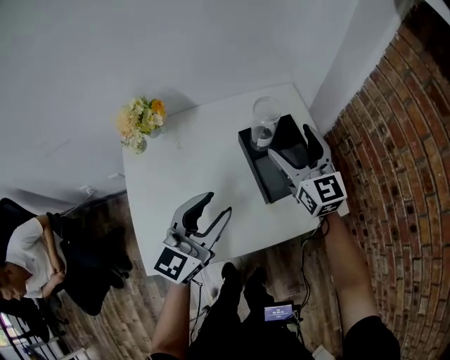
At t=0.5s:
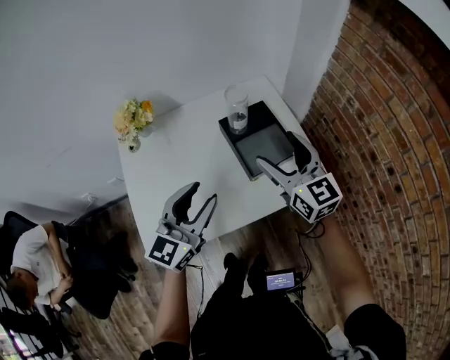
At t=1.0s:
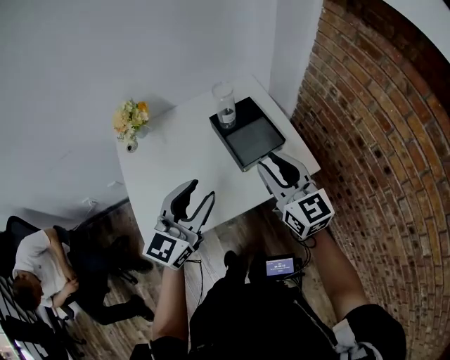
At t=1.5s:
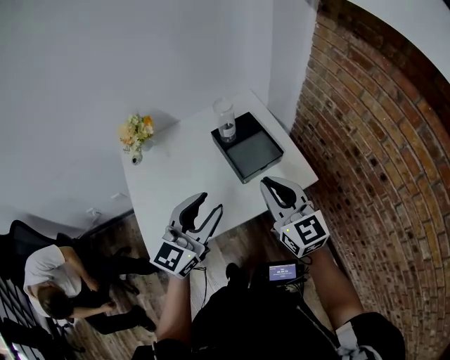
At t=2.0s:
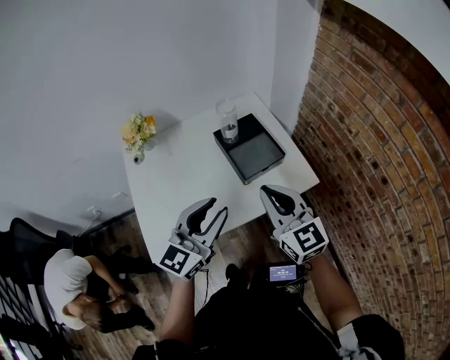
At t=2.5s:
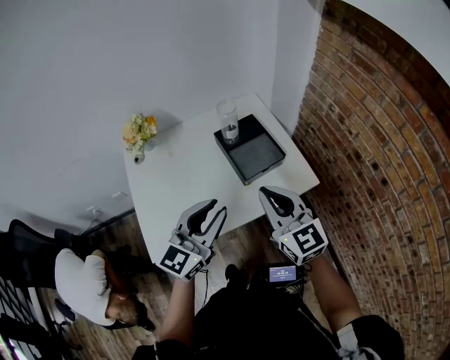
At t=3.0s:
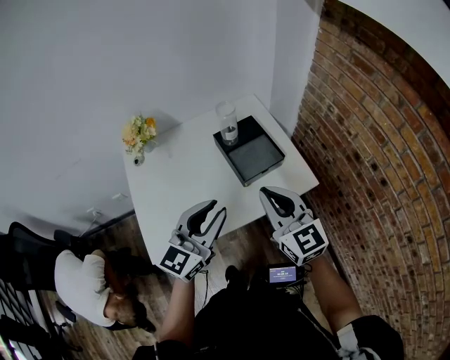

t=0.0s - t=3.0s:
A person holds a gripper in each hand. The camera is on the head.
t=0.0s - t=1.5s: The right gripper travels backward by approximately 25 cm, and closes its fingers; the left gripper heads backward, upward and to the right, covering approximately 15 cm.
t=1.5s - t=3.0s: There are only small adjustments of the grippers.

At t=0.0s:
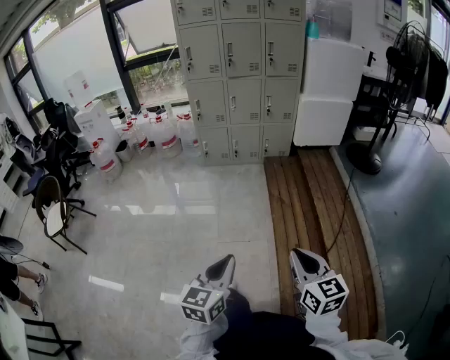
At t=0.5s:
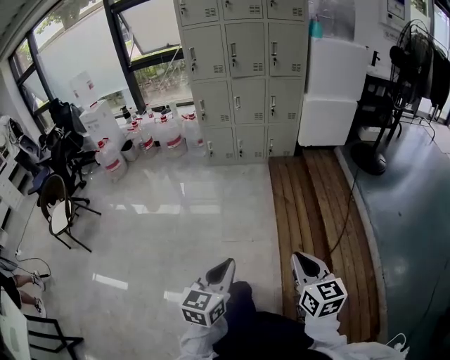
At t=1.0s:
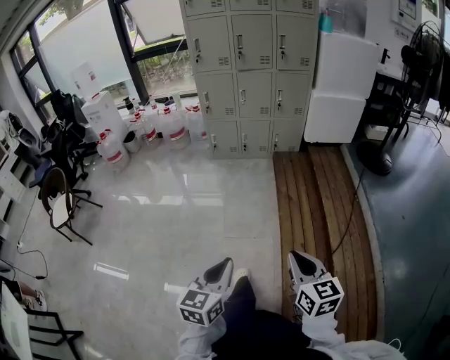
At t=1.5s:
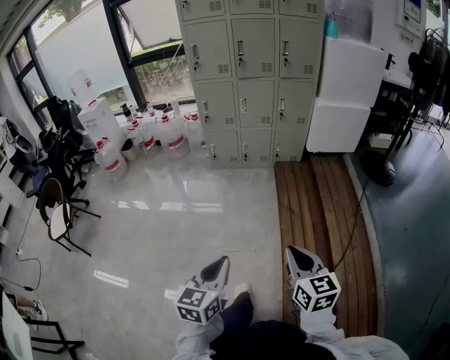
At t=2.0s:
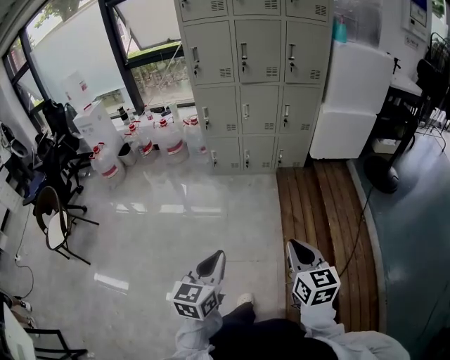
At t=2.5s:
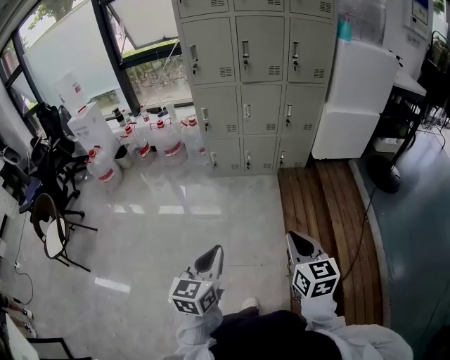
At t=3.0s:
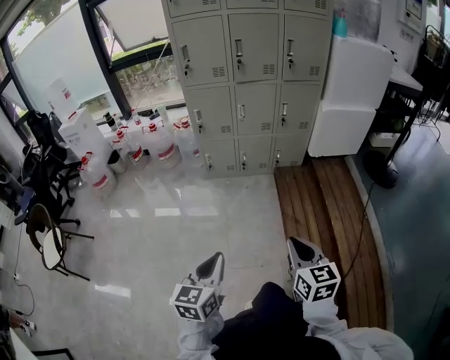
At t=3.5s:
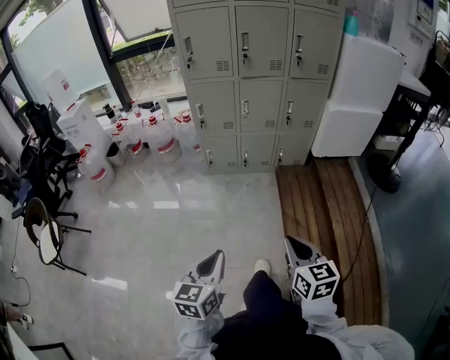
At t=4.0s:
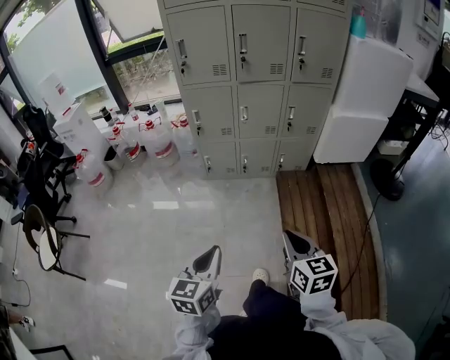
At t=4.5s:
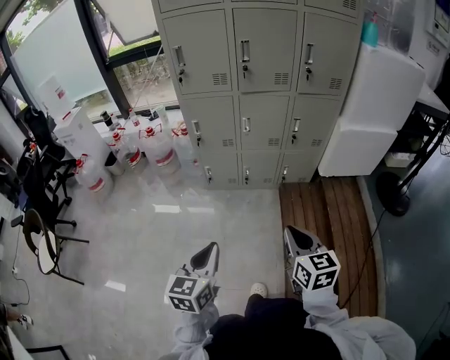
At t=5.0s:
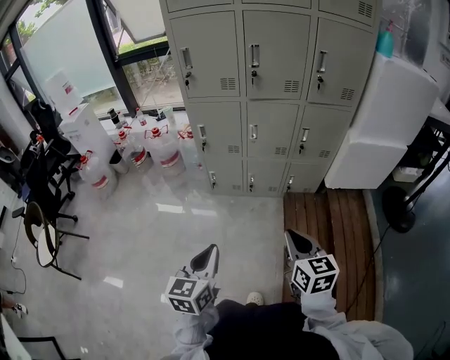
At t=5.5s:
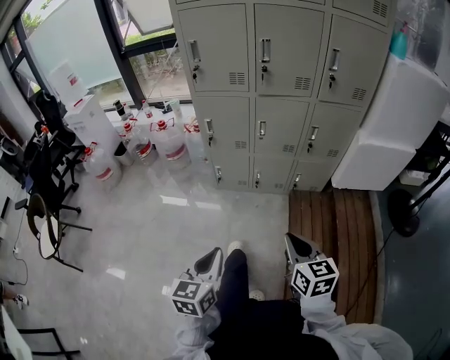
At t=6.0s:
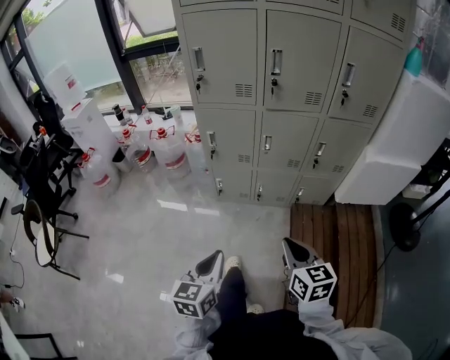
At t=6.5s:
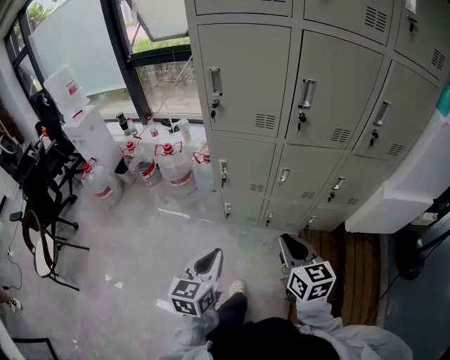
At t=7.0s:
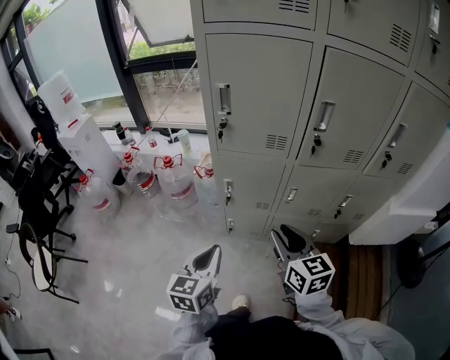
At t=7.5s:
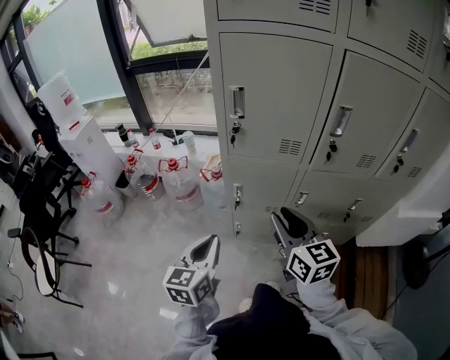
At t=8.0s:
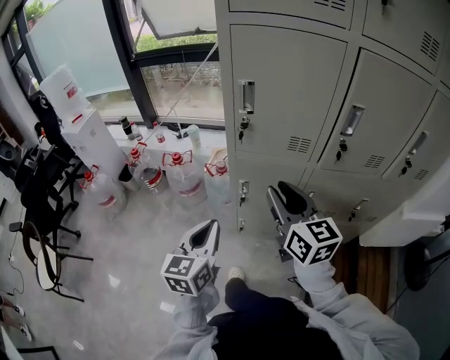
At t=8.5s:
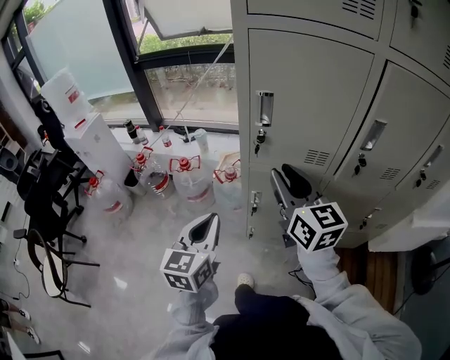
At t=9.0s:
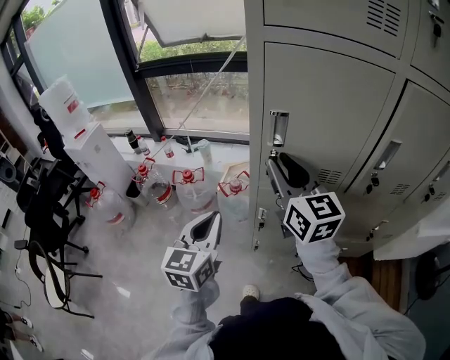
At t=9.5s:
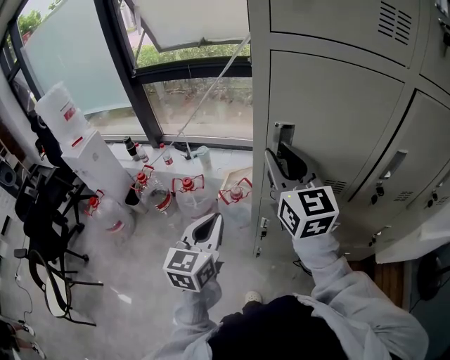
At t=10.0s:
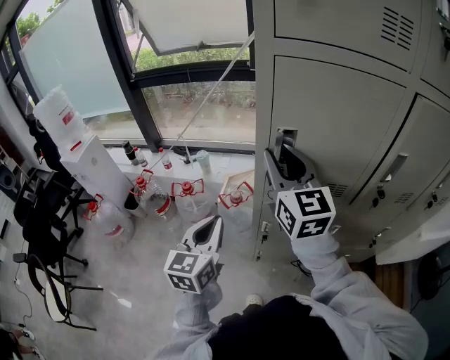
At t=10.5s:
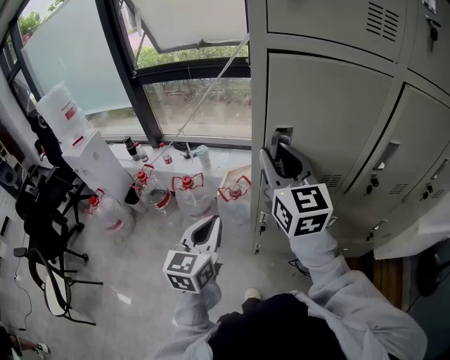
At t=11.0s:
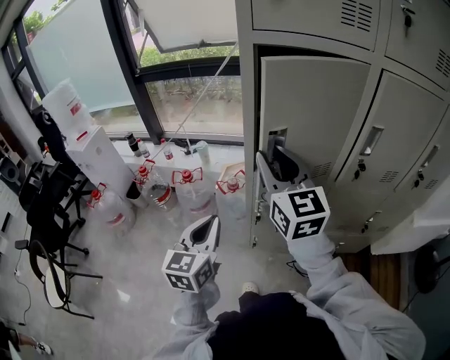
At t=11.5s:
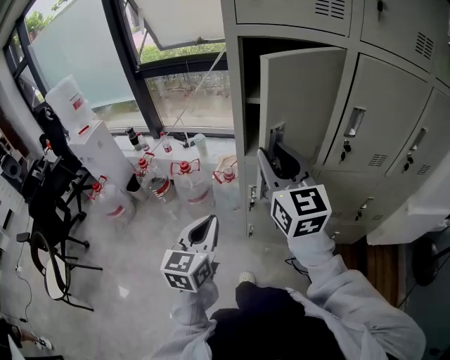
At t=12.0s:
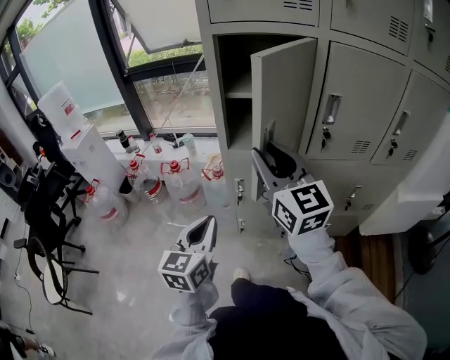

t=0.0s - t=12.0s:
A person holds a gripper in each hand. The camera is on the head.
t=0.0s - t=2.0s: The grippers both shift forward by roughly 25 cm.
t=2.0s - t=4.0s: The grippers both shift forward by about 20 cm.
t=4.0s - t=6.0s: Both grippers move forward, approximately 20 cm.
t=6.0s - t=8.0s: The right gripper shifts roughly 50 cm forward, to the left and upward, turns by some 20 degrees, and opens its fingers; the left gripper is displaced forward and to the left by about 40 cm.
t=8.0s - t=10.0s: The right gripper is displaced forward, upward and to the left by some 25 cm; the left gripper travels forward and to the left by roughly 20 cm.
t=10.0s - t=12.0s: The right gripper goes some 20 cm backward. The left gripper travels backward and to the right by some 20 cm.

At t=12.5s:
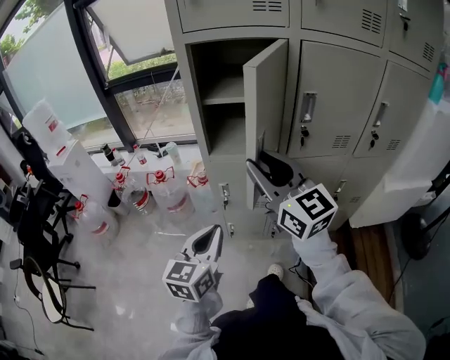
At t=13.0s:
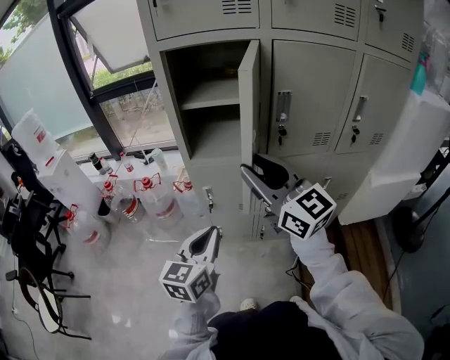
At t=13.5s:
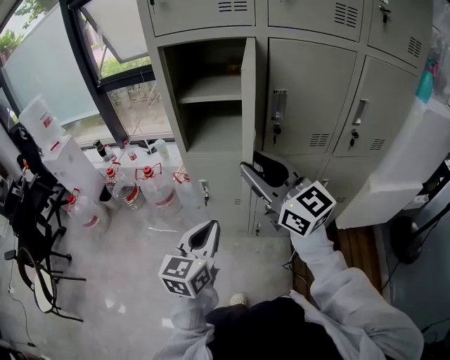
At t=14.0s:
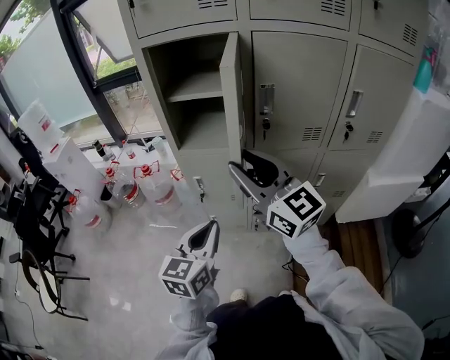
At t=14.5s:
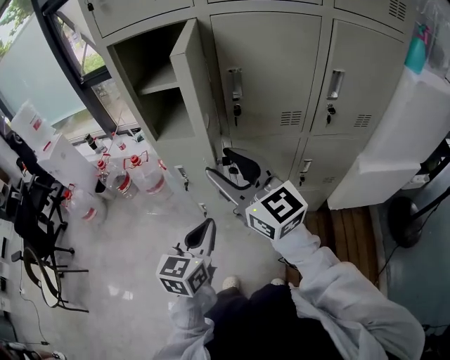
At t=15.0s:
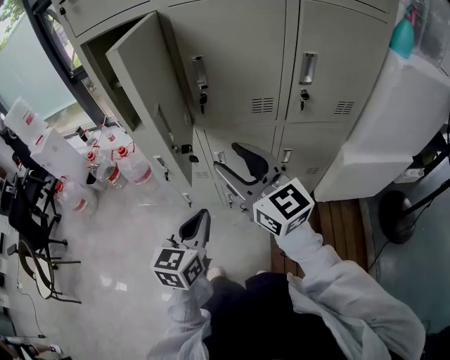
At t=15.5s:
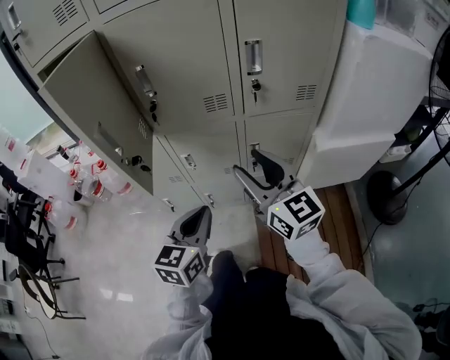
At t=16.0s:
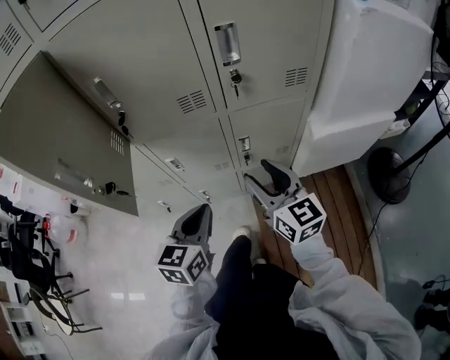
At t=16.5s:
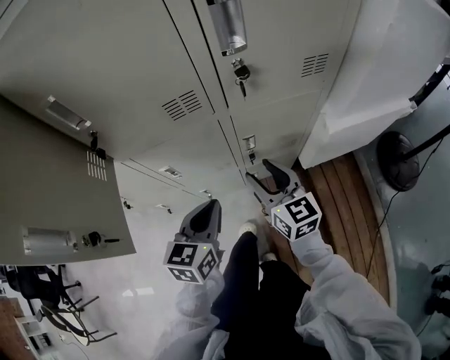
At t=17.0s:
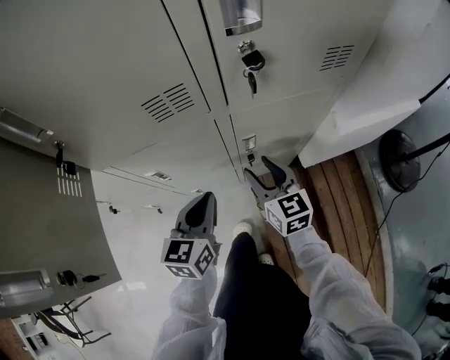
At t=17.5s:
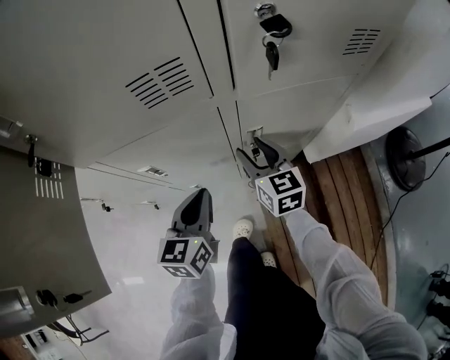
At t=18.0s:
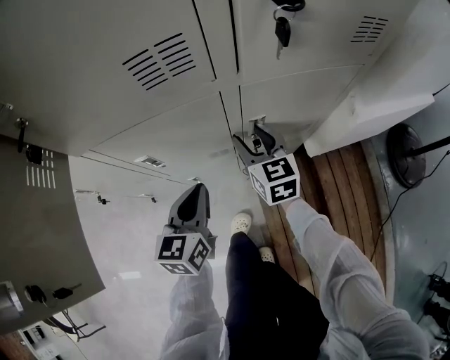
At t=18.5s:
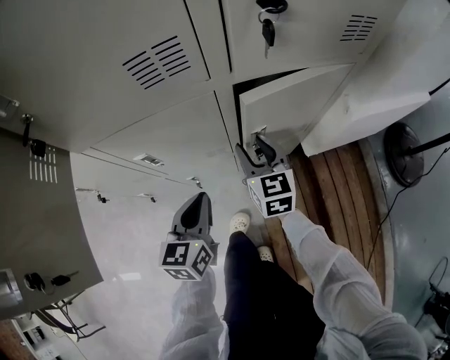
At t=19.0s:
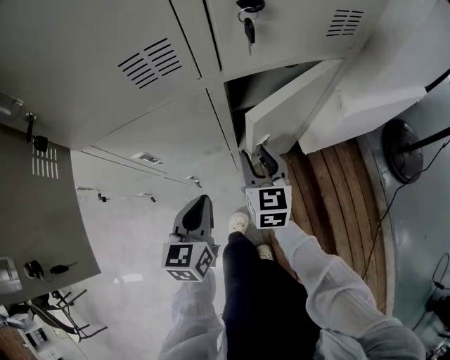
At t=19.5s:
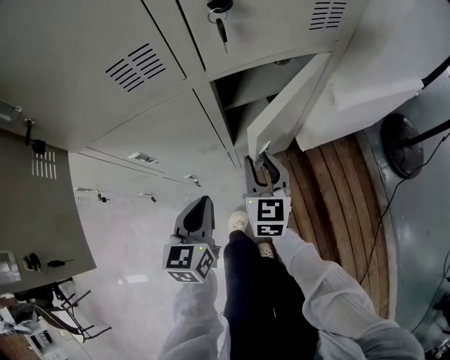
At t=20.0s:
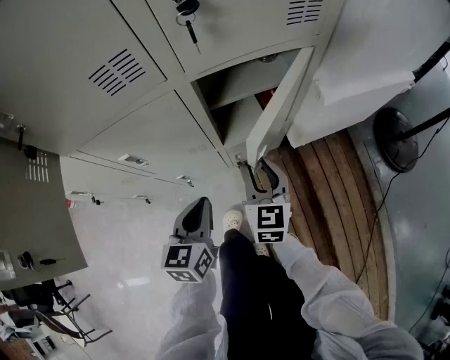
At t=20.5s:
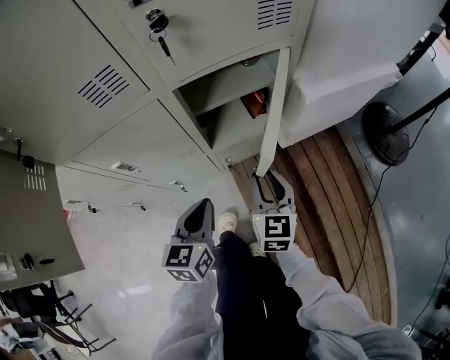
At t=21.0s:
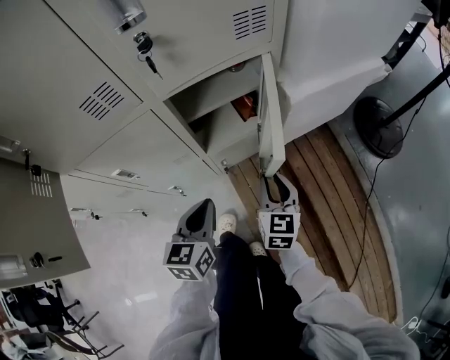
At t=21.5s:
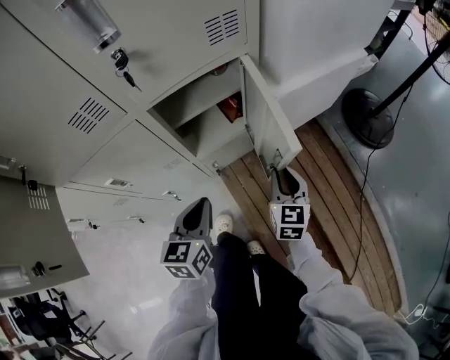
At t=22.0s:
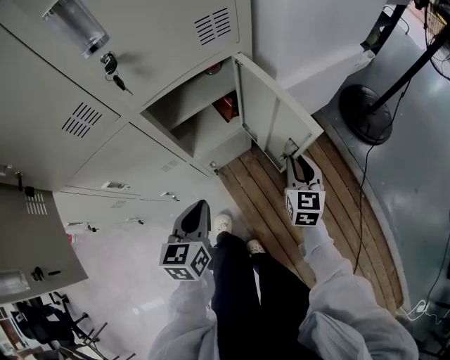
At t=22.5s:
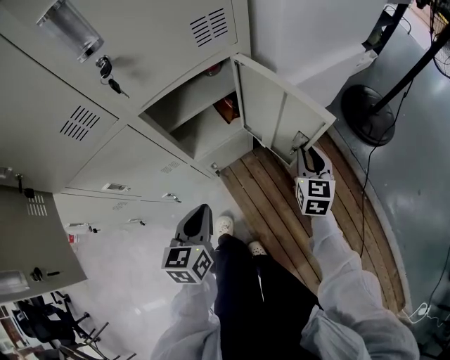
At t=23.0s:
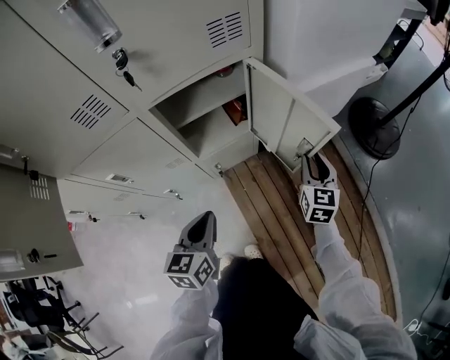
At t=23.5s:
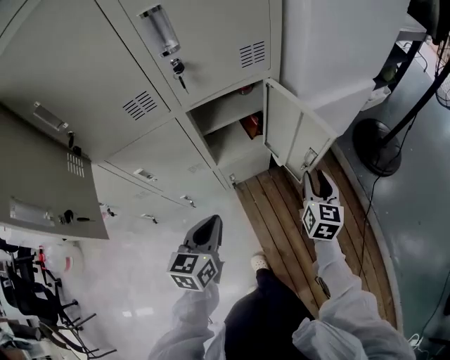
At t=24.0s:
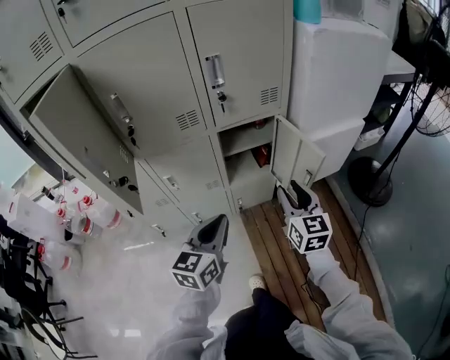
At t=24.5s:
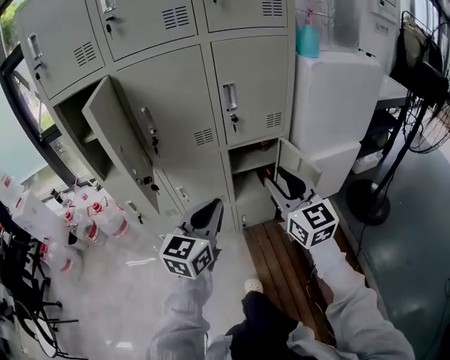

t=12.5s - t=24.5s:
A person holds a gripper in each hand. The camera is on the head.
t=12.5s - t=14.5s: The left gripper shifts approximately 20 cm to the right. The right gripper travels to the right and backward by about 15 cm, and opens.
t=14.5s - t=16.5s: The left gripper goes about 30 cm to the right, forward and downward, while the right gripper travels to the right and downward by about 40 cm, and rotates approximately 40 degrees.
t=16.5s - t=18.5s: The left gripper travels downward by some 10 cm. The right gripper travels downward and forward by approximately 15 cm.
t=18.5s - t=20.5s: The left gripper goes some 10 cm to the right, while the right gripper goes about 20 cm to the right and backward.
t=20.5s - t=22.5s: The left gripper shifts some 5 cm to the right. The right gripper moves to the right, about 20 cm.
t=22.5s - t=24.5s: The left gripper goes some 35 cm upward and backward, and changes its angle by some 30 degrees. Meanwhile the right gripper is displaced upward, backward and to the left by some 50 cm, and changes its angle by about 50 degrees.
